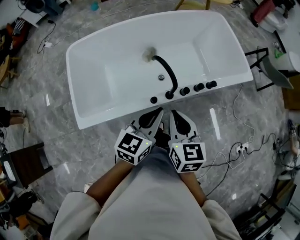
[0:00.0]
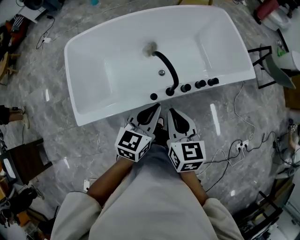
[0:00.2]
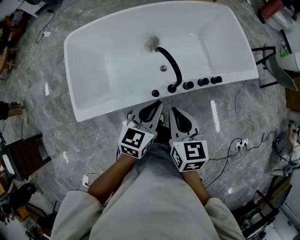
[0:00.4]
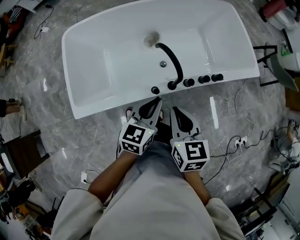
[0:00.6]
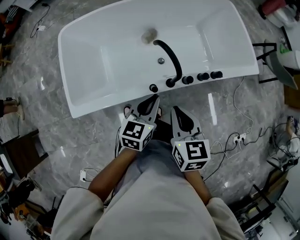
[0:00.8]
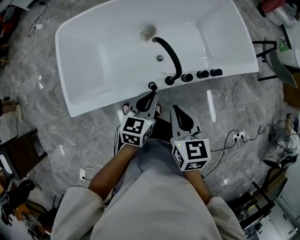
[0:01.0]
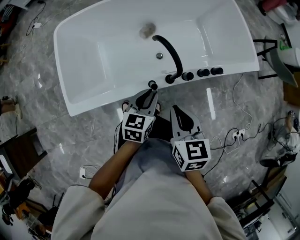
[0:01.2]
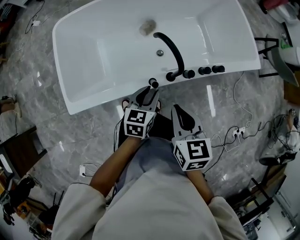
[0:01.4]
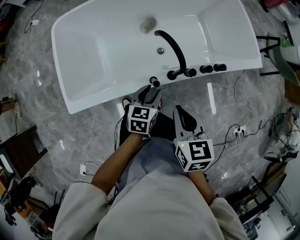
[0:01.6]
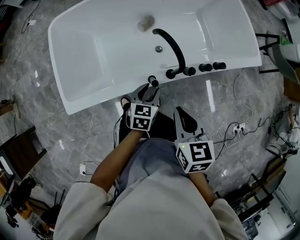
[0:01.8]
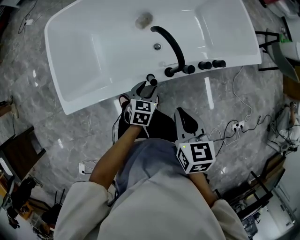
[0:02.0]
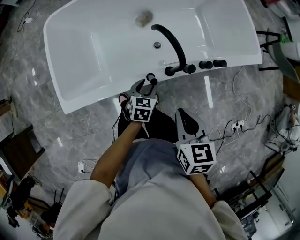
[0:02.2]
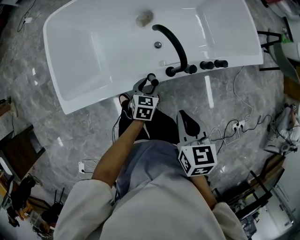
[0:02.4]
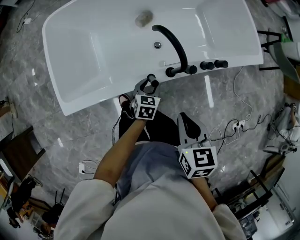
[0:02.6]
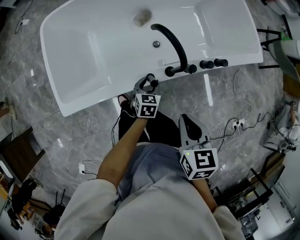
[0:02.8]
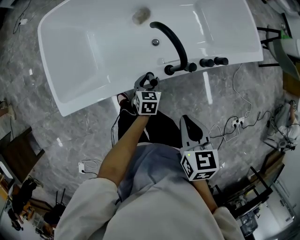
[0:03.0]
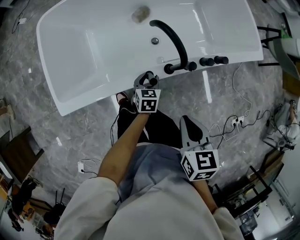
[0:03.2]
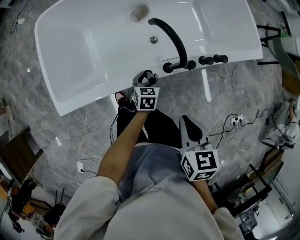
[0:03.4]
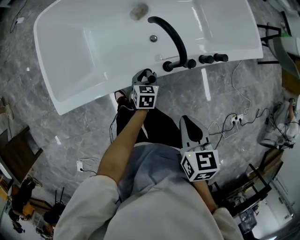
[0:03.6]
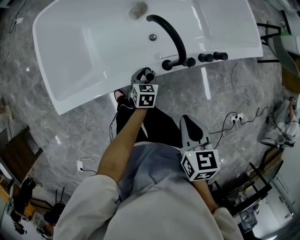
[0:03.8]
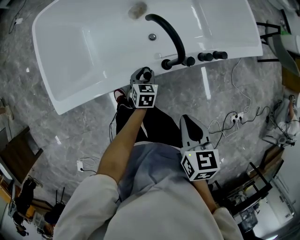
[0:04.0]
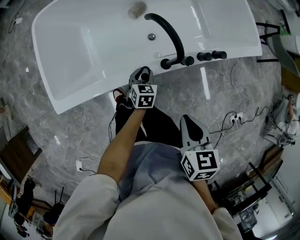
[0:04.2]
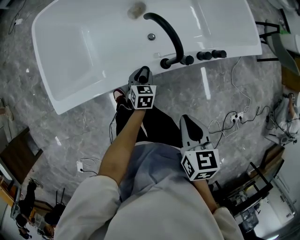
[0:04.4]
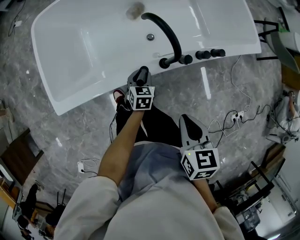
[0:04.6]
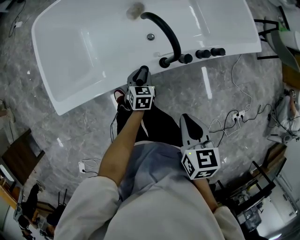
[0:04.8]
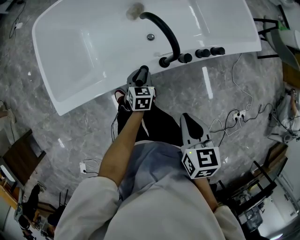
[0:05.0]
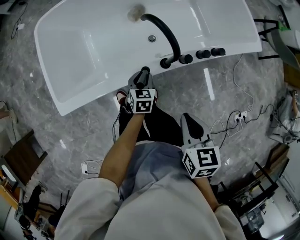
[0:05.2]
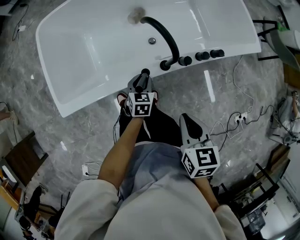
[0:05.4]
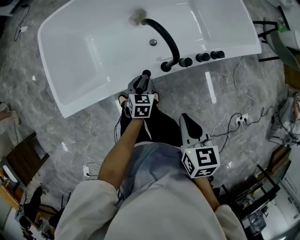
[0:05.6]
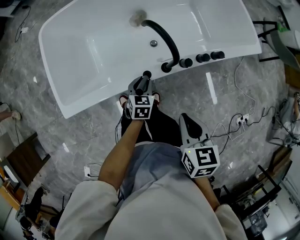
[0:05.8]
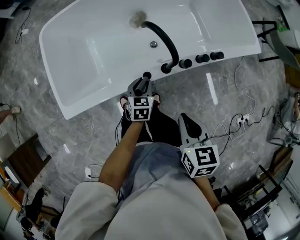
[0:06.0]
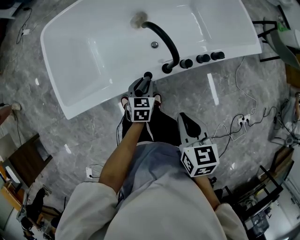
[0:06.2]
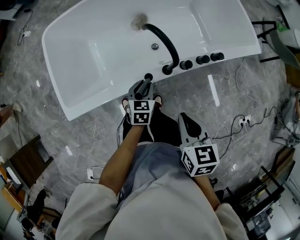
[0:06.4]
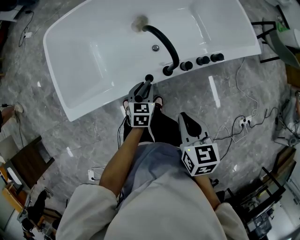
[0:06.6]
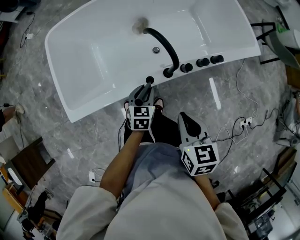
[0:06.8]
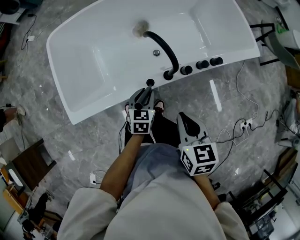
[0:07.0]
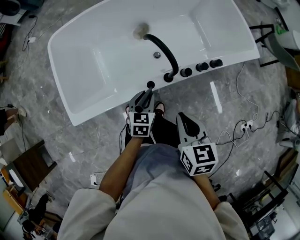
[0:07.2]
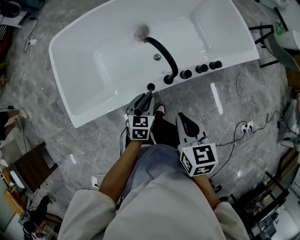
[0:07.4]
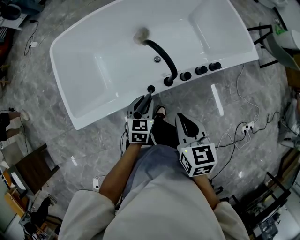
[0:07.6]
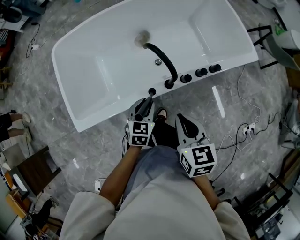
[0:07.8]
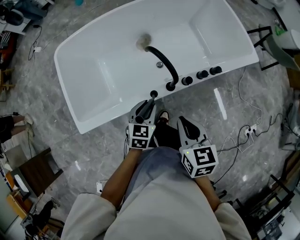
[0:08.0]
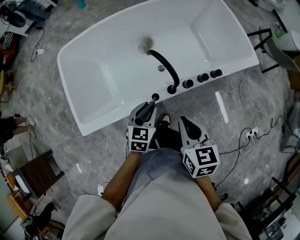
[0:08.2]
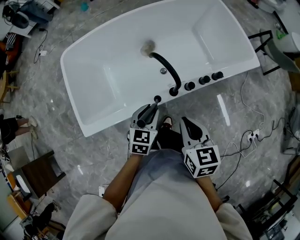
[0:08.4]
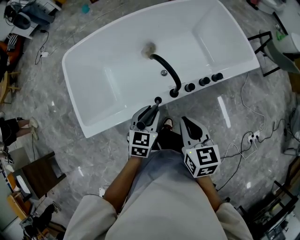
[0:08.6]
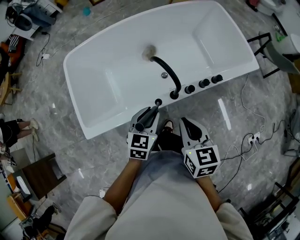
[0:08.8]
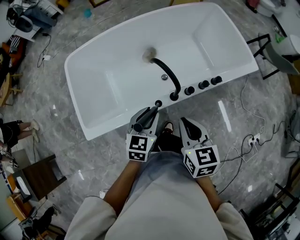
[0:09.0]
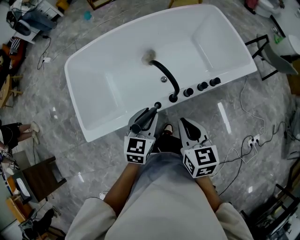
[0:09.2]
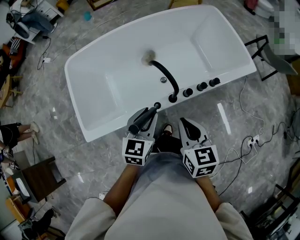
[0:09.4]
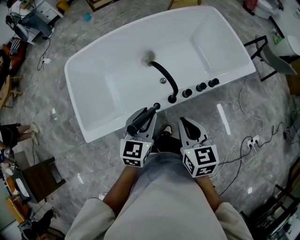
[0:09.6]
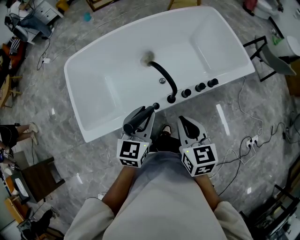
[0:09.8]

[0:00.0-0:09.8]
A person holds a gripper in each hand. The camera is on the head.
0:00.0 to 0:01.4: The left gripper heads downward, covering roughly 20 cm, changes its angle by roughly 20 degrees, and opens up. Meanwhile the right gripper is displaced downward by approximately 5 cm.
0:01.4 to 0:02.8: The left gripper goes some 15 cm downward. The right gripper ends up some 5 cm from where it was.
0:02.8 to 0:05.6: There are only small adjustments of the grippers.
0:05.6 to 0:07.0: The left gripper shifts about 10 cm upward.
0:07.0 to 0:08.4: The left gripper moves upward, approximately 10 cm.
0:08.4 to 0:09.8: The left gripper shifts approximately 10 cm upward.

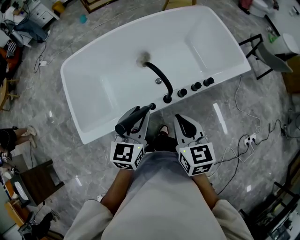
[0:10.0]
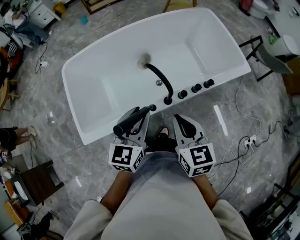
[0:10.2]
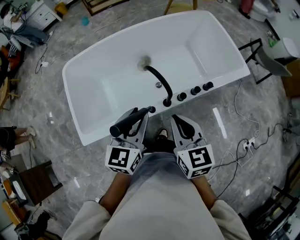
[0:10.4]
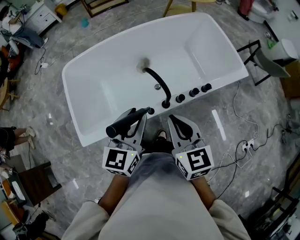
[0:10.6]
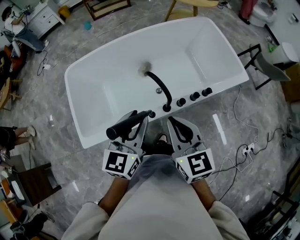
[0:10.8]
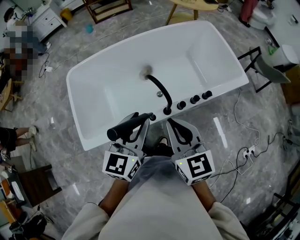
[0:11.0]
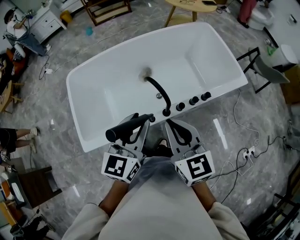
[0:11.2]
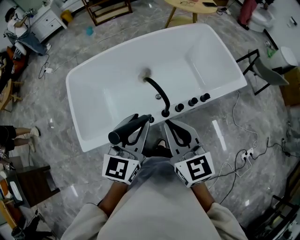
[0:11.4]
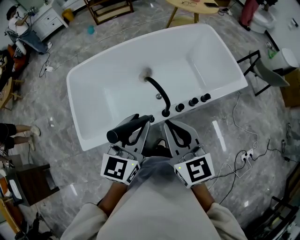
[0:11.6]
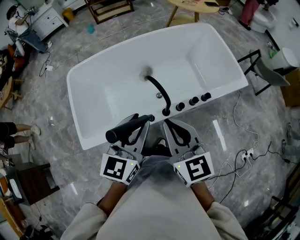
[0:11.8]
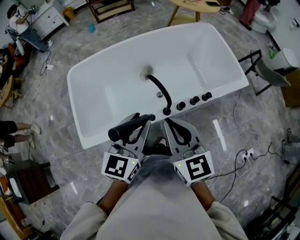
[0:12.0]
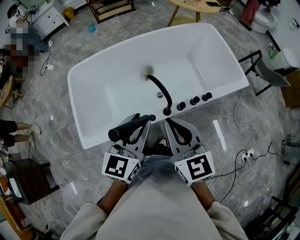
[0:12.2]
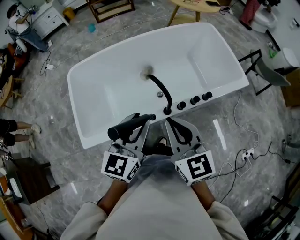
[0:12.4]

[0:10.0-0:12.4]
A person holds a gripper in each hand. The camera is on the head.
0:10.0 to 0:11.2: Both grippers travel together upward, approximately 10 cm.
0:11.2 to 0:12.4: Neither gripper changes place.

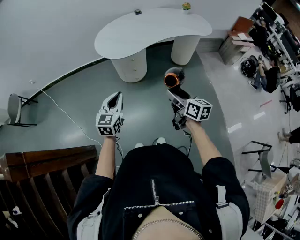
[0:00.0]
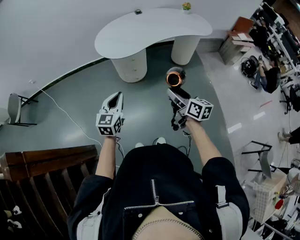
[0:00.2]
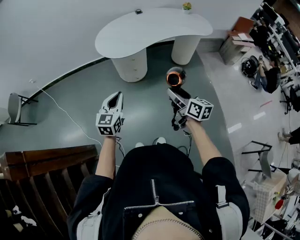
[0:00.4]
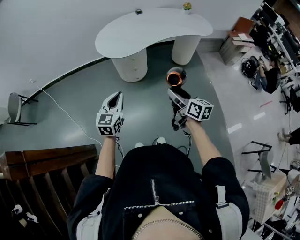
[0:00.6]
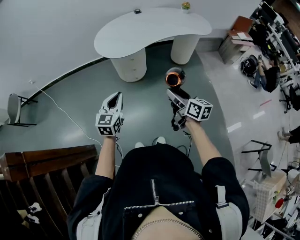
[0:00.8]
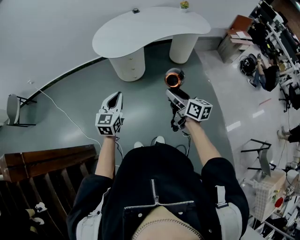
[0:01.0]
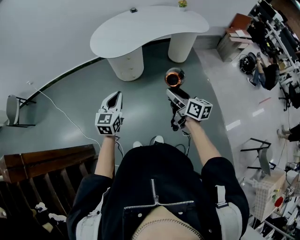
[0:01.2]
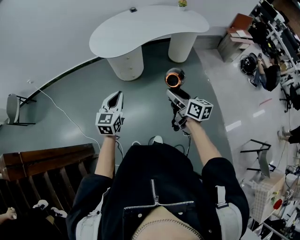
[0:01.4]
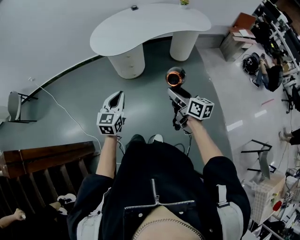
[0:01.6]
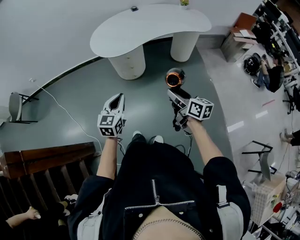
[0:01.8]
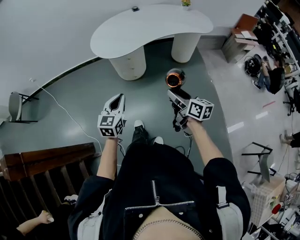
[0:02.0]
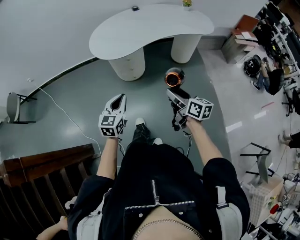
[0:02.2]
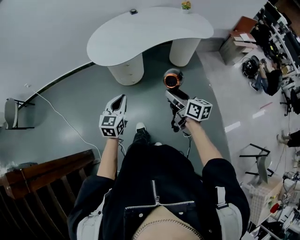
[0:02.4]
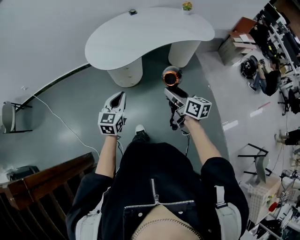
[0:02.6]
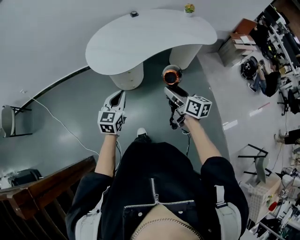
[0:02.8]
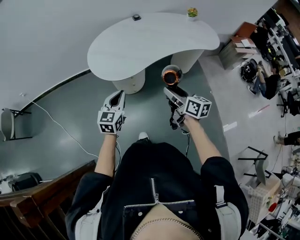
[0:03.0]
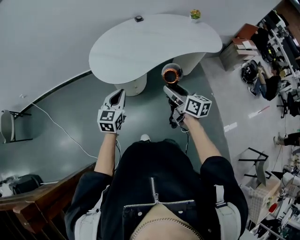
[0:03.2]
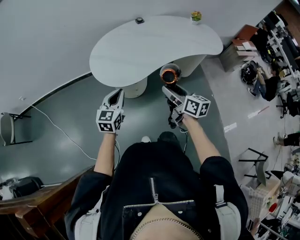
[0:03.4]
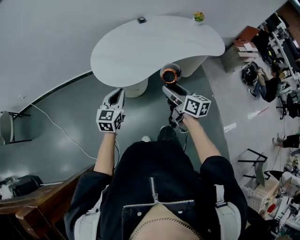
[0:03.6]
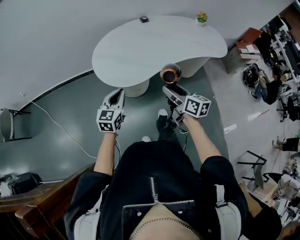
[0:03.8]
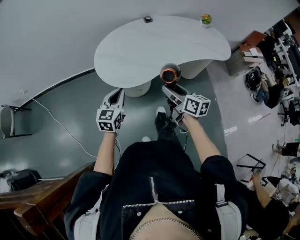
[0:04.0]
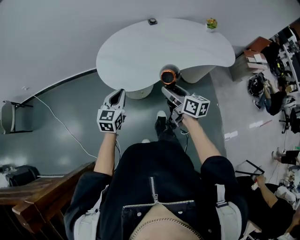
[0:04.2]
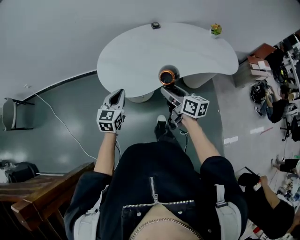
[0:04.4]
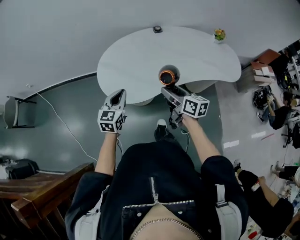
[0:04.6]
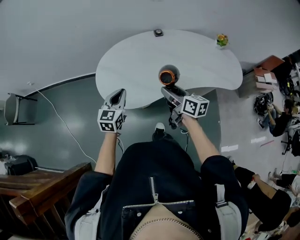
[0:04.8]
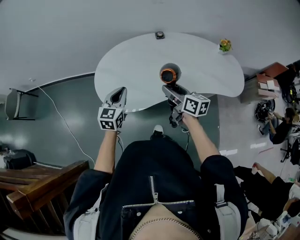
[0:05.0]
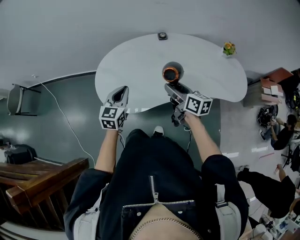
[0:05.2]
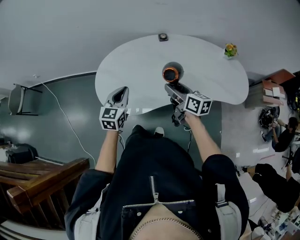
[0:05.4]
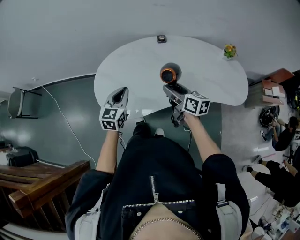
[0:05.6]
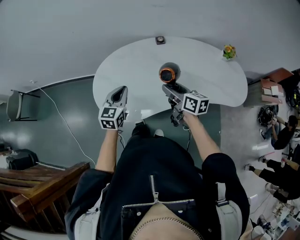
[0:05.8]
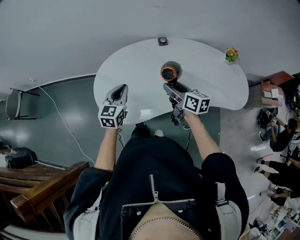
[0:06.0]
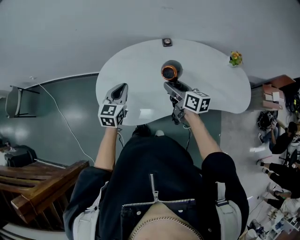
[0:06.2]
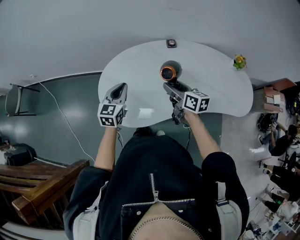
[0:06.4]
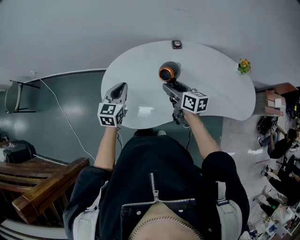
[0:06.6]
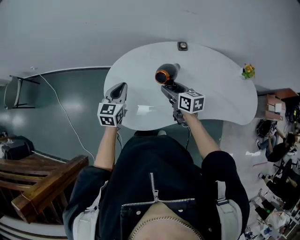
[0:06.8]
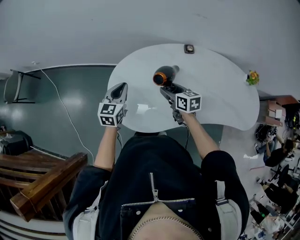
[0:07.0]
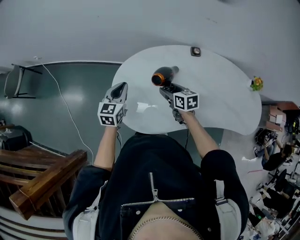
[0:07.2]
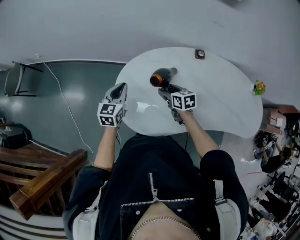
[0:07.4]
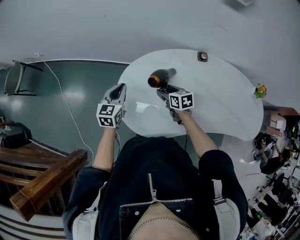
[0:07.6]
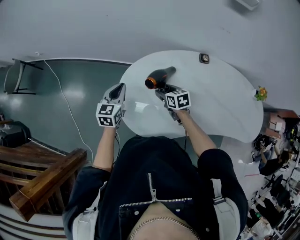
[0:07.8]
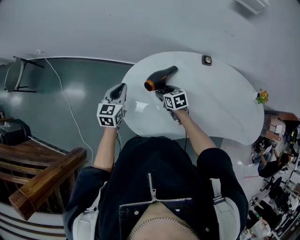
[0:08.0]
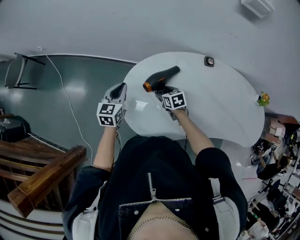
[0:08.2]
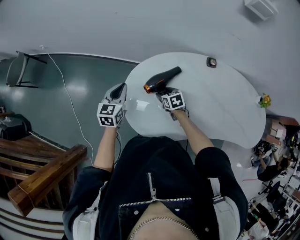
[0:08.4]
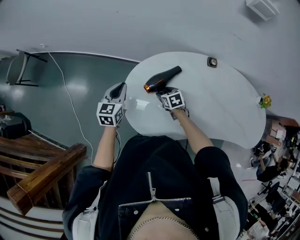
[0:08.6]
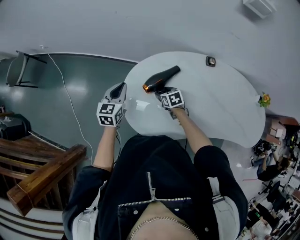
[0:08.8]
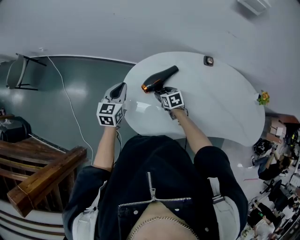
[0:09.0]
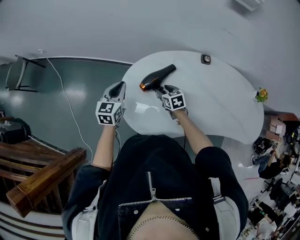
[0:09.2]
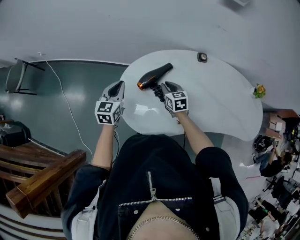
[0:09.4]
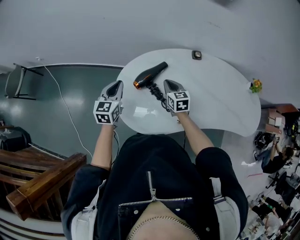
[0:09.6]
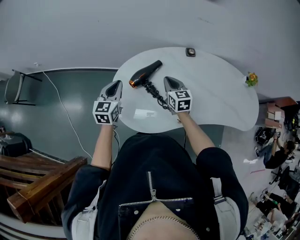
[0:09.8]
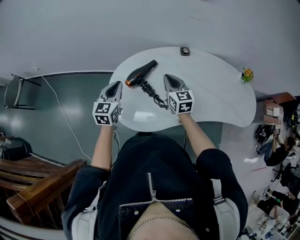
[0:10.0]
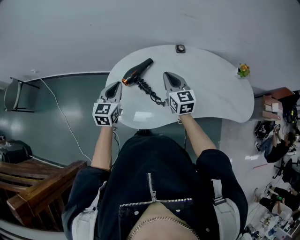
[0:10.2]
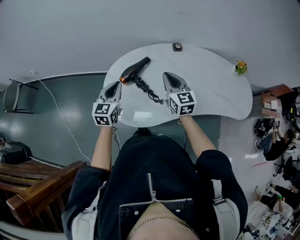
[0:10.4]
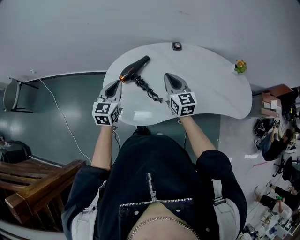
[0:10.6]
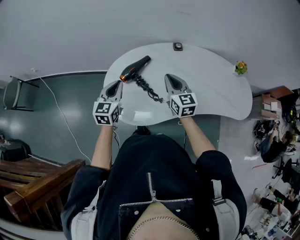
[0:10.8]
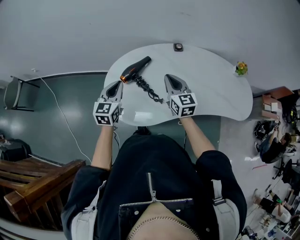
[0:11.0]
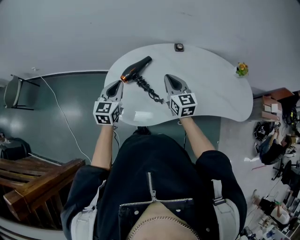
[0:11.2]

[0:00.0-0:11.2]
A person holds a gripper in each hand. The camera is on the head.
0:00.0 to 0:01.6: The grippers move only a little.
0:01.6 to 0:03.2: The two grippers go approximately 25 cm forward.
0:03.2 to 0:04.8: The two grippers go about 20 cm forward.
0:04.8 to 0:06.4: The two grippers go approximately 15 cm forward.
0:06.4 to 0:08.0: The left gripper travels to the left and forward by approximately 20 cm. The right gripper moves downward, to the left and forward, some 30 cm, and turns by roughly 40 degrees.
0:08.0 to 0:09.6: The right gripper shifts approximately 10 cm upward and to the right, turns by about 30 degrees, and closes its fingers.
0:09.6 to 0:11.2: The left gripper goes about 10 cm to the right and backward. Meanwhile the right gripper shifts approximately 15 cm upward, backward and to the right.
